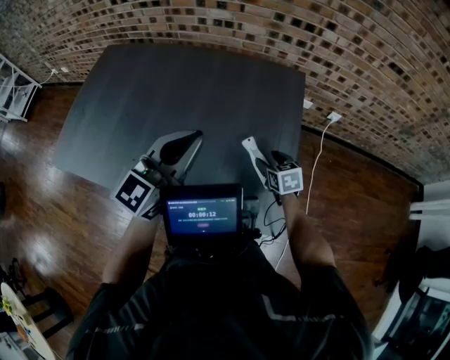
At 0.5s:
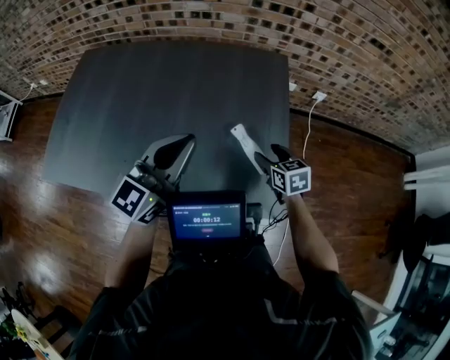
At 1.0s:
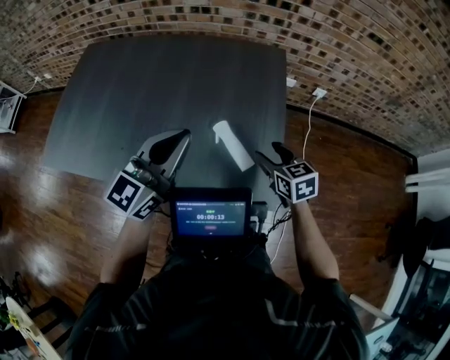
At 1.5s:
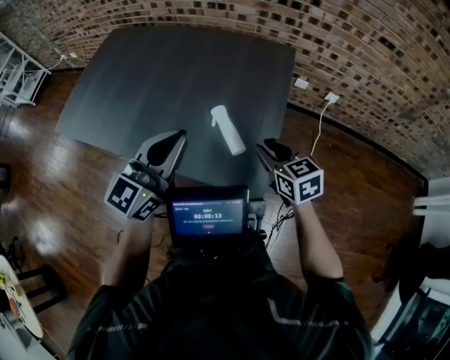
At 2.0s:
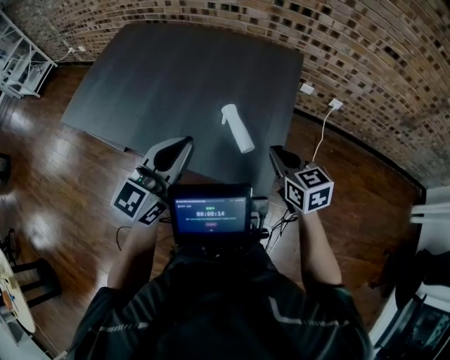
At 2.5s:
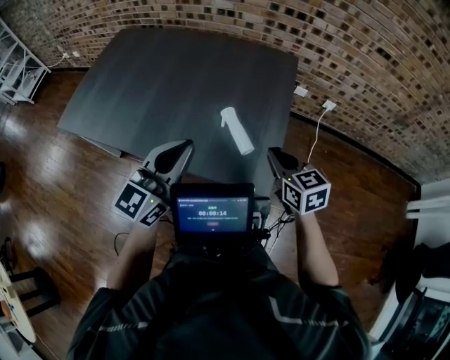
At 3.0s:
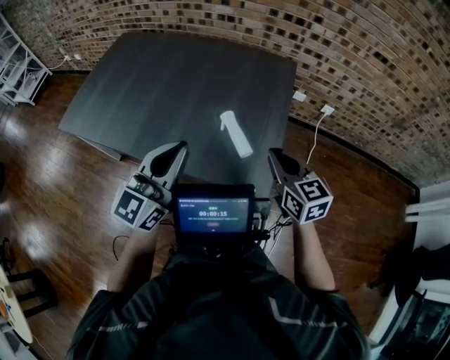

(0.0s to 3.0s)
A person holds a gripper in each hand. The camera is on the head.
0.0s - 1.5s: The right gripper heads upward and backward, covering about 20 cm, and closes its fingers; the left gripper is displaced backward and to the right by about 15 cm.
1.5s - 3.0s: The right gripper shifts some 10 cm upward and backward, and closes up; the left gripper heads to the left and backward, covering approximately 10 cm.

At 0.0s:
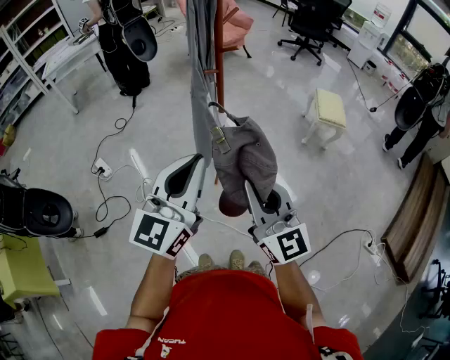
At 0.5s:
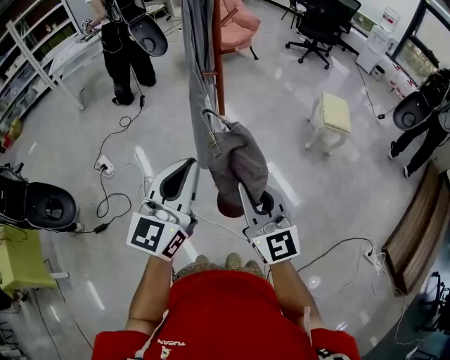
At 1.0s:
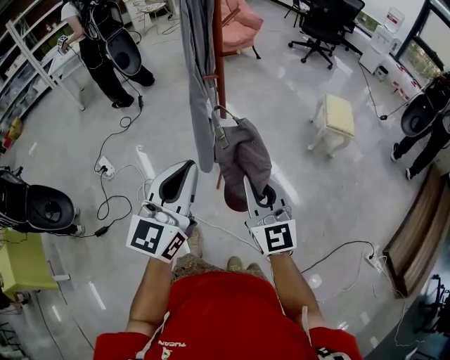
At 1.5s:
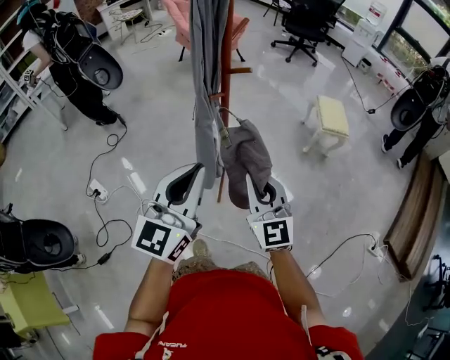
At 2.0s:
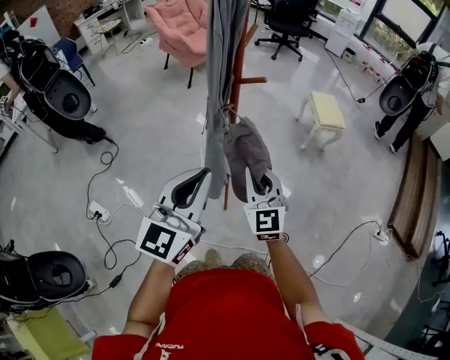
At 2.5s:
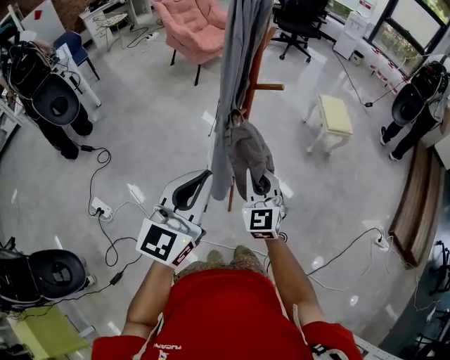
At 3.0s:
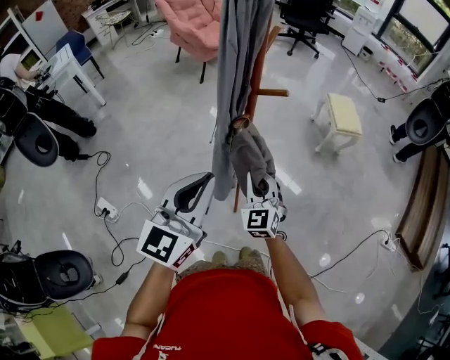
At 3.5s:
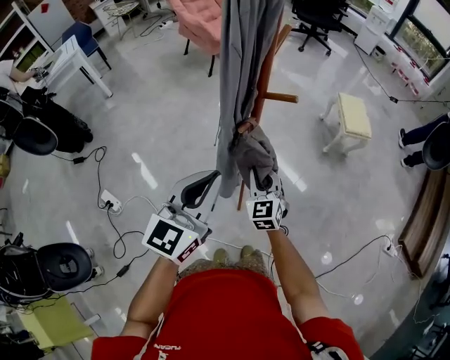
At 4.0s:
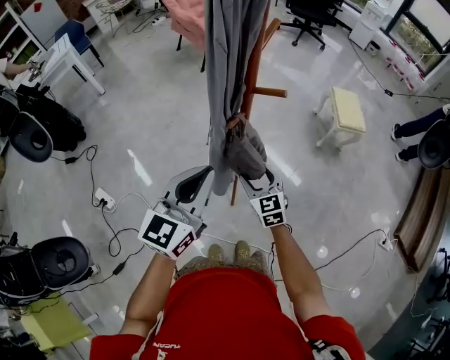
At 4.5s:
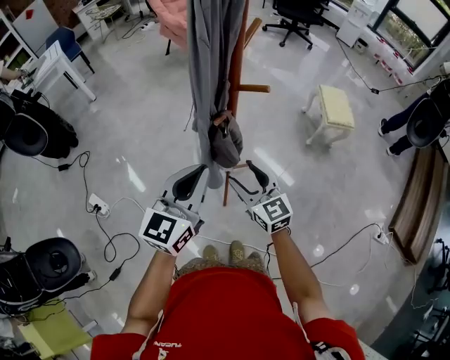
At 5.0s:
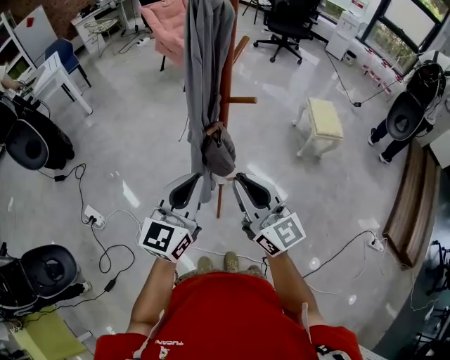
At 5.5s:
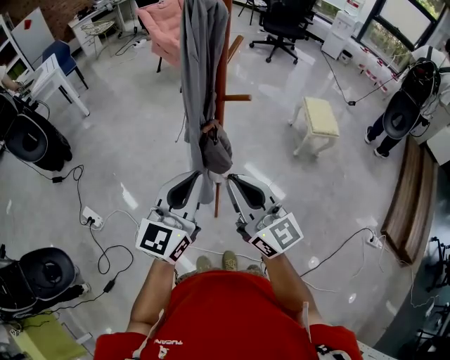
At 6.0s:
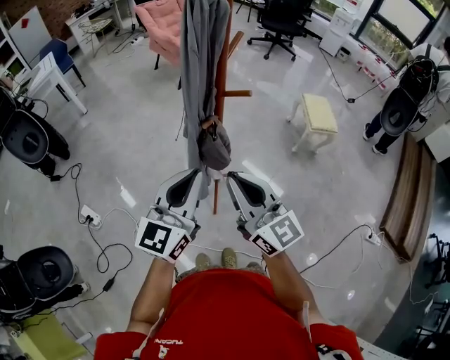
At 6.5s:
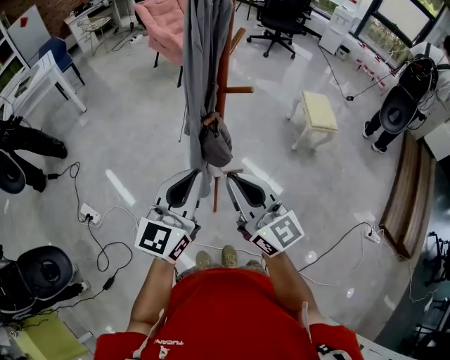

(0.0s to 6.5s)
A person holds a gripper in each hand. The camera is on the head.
0.0s - 2.0s: The left gripper travels forward and to the left by roughly 20 cm; the right gripper travels forward, to the left and downward by approximately 30 cm, and swivels about 30 degrees.
2.0s - 4.5s: Both grippers travel together forward and downward, some 10 cm. The right gripper swivels some 30 degrees, and opens.
4.5s - 6.5s: The left gripper changes place by roughly 5 cm; the right gripper is displaced upward and backward by some 20 cm, swivels roughly 20 degrees, and closes.

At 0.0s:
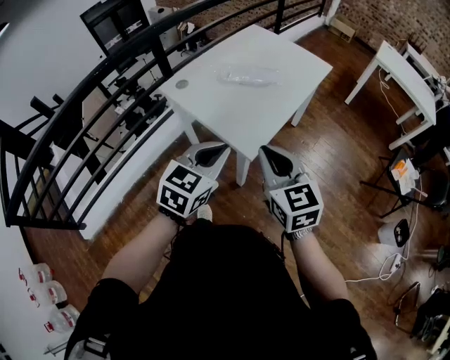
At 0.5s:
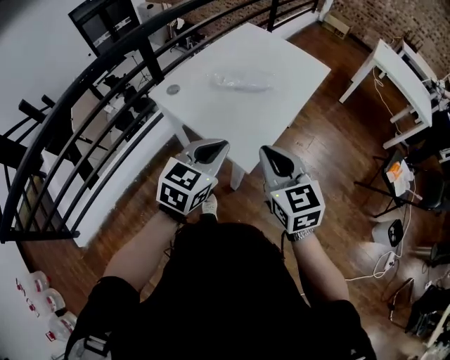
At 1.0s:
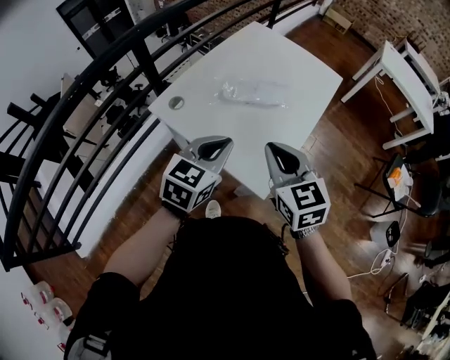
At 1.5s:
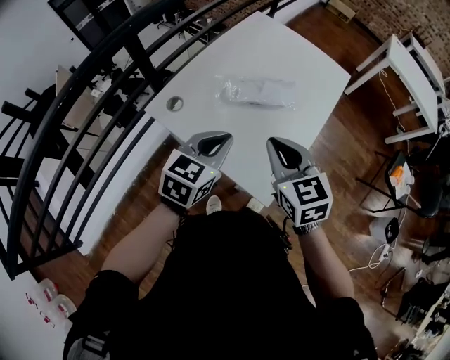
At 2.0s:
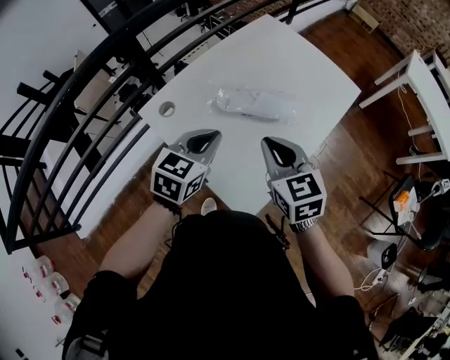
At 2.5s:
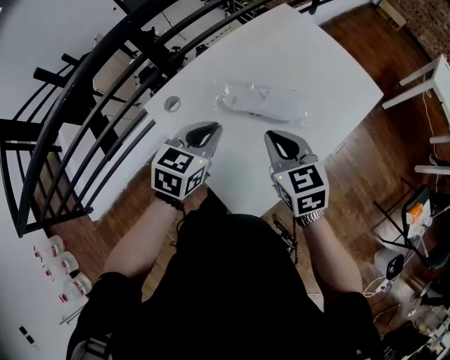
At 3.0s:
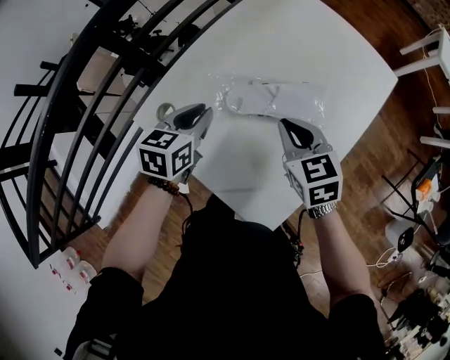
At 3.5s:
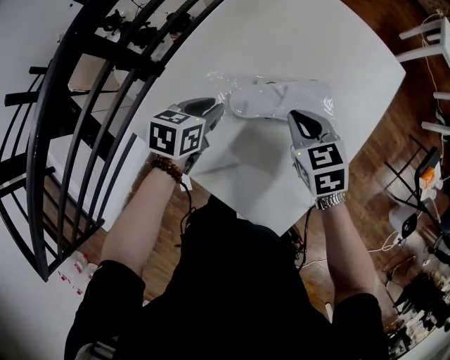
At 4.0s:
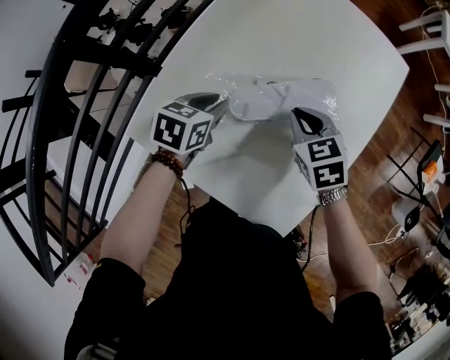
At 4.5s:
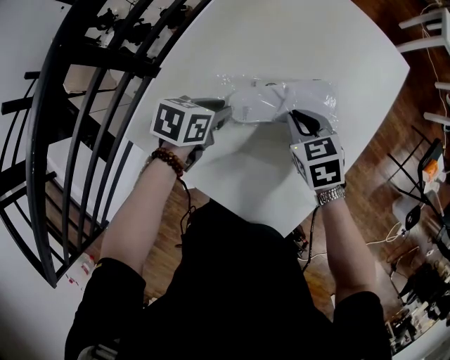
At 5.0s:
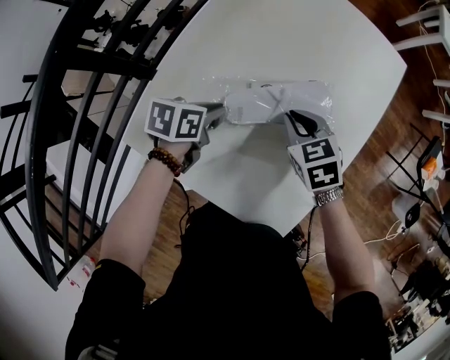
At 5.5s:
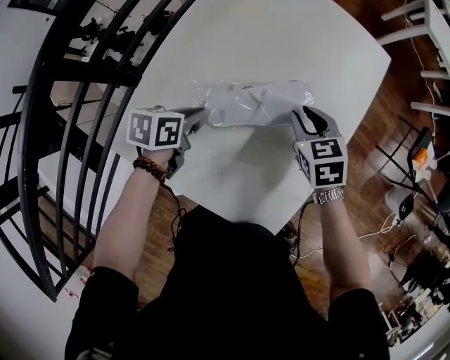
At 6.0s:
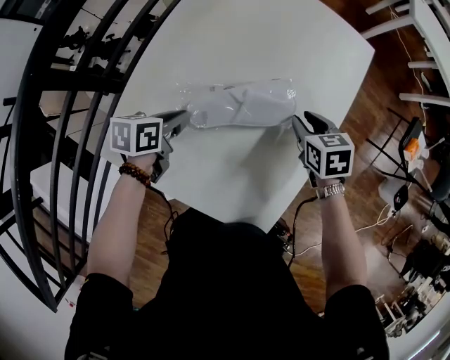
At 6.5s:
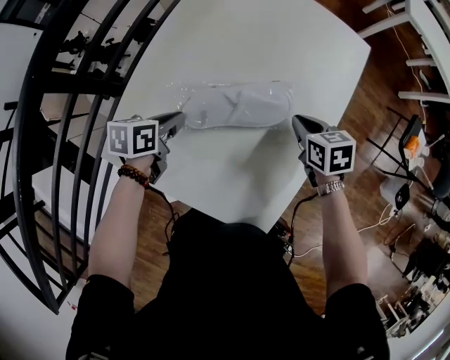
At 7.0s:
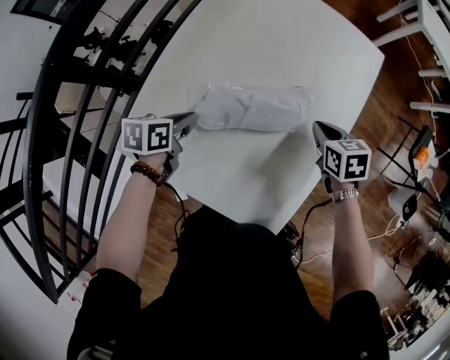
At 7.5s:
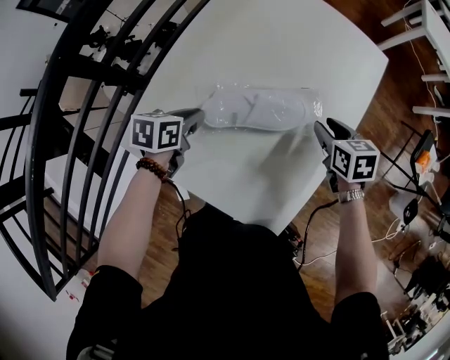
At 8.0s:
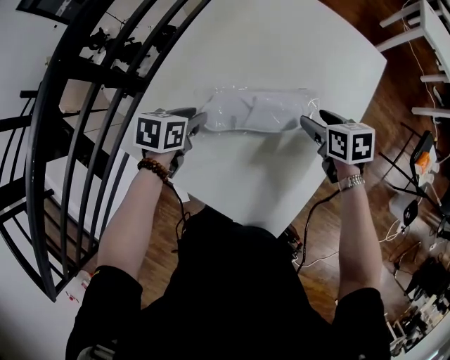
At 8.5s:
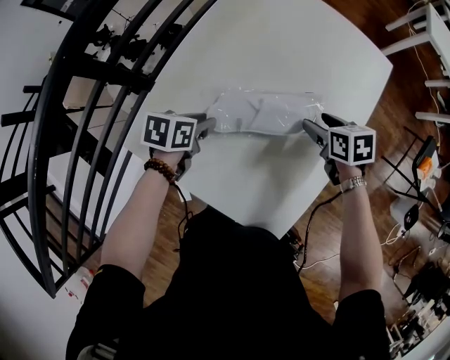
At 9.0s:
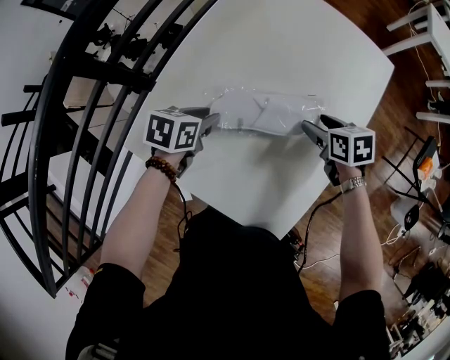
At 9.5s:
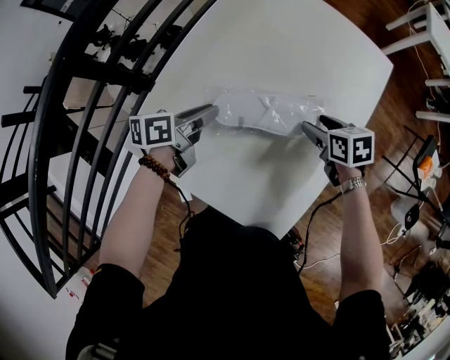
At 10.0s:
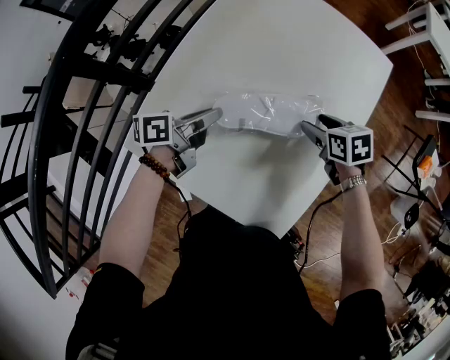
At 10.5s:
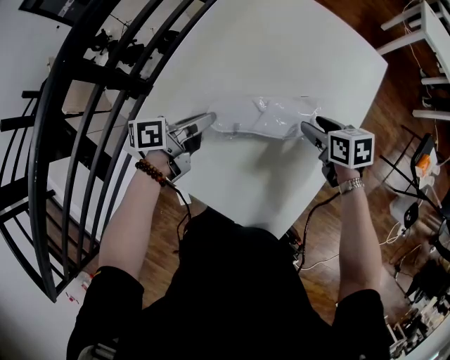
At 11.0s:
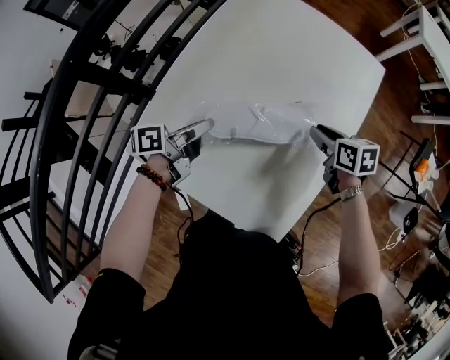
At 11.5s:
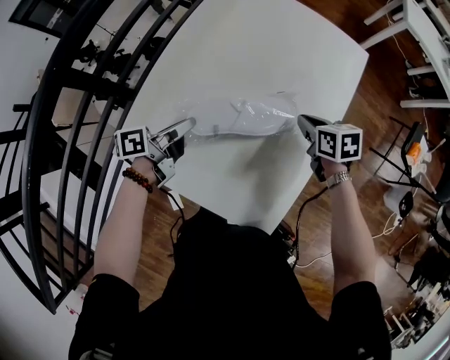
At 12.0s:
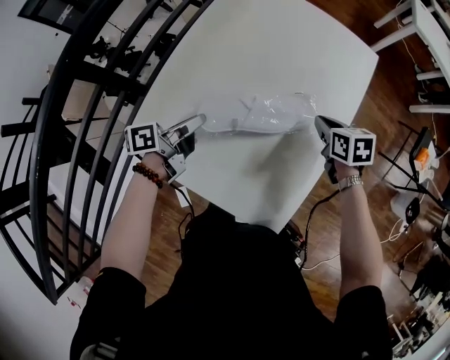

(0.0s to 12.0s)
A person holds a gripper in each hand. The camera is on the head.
0.0s - 2.0s: Both grippers move forward, about 25 cm.
2.0s - 4.0s: The left gripper goes approximately 20 cm downward, forward and to the left, and turns by about 30 degrees, while the right gripper moves downward and forward, approximately 20 cm, and turns by roughly 20 degrees.
4.0s - 6.0s: The right gripper shifts about 15 cm to the right, and opens.
6.0s - 8.0s: The right gripper opens, while the left gripper opens up.
8.0s - 10.0s: The left gripper ends up about 5 cm from where it was, and tips its fingers upward by some 30 degrees.
10.0s - 12.0s: The right gripper shifts roughly 5 cm to the right, and closes.

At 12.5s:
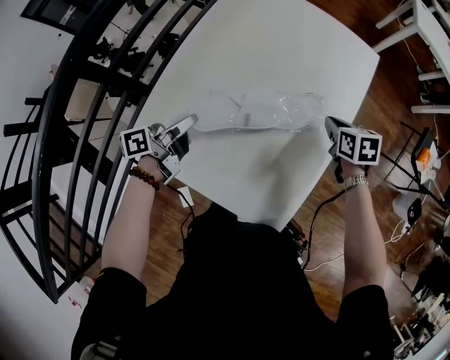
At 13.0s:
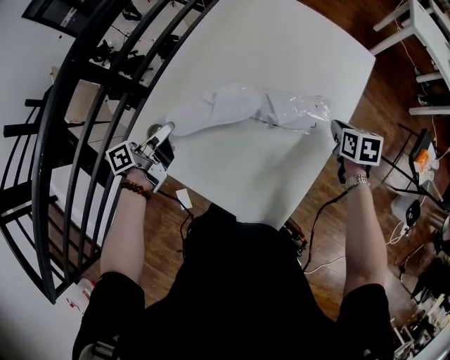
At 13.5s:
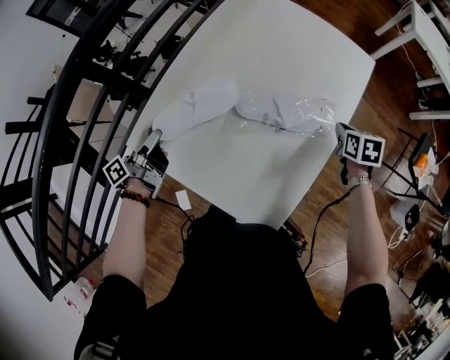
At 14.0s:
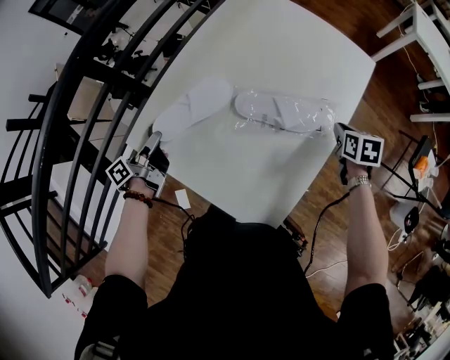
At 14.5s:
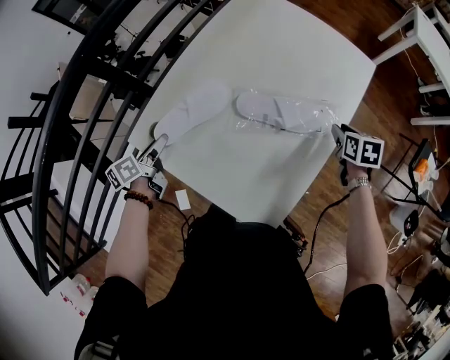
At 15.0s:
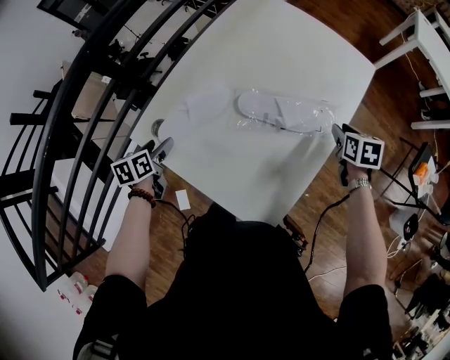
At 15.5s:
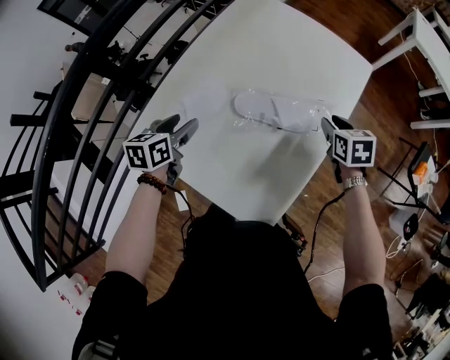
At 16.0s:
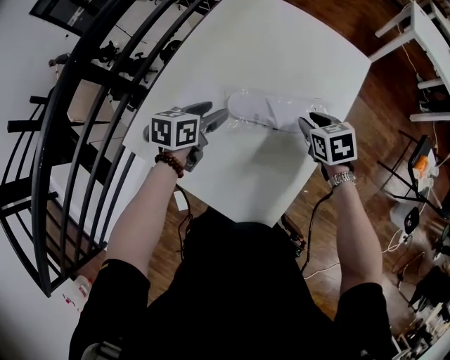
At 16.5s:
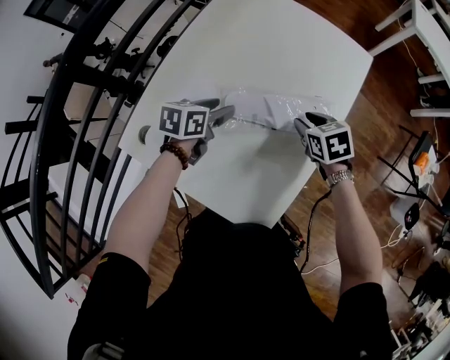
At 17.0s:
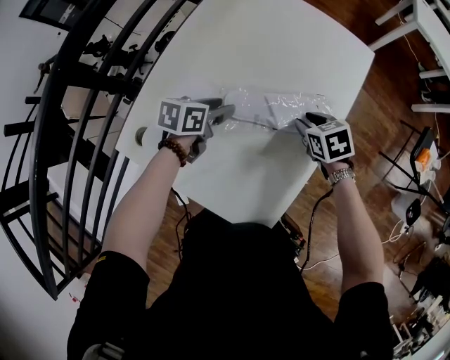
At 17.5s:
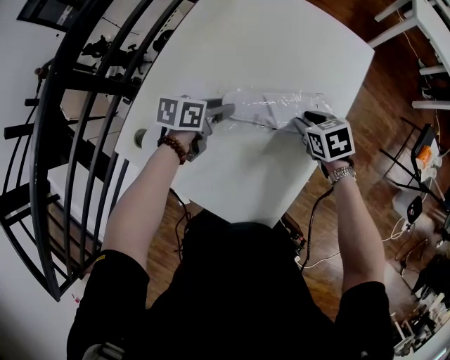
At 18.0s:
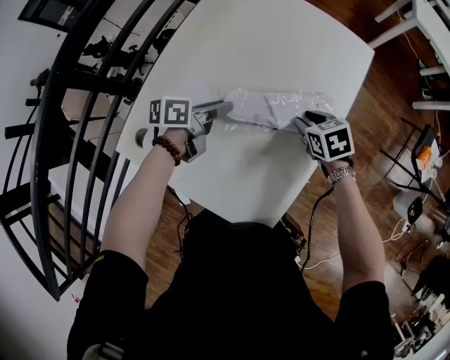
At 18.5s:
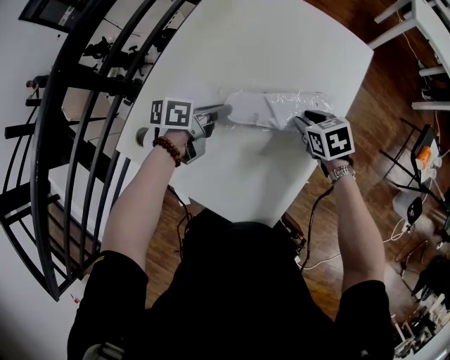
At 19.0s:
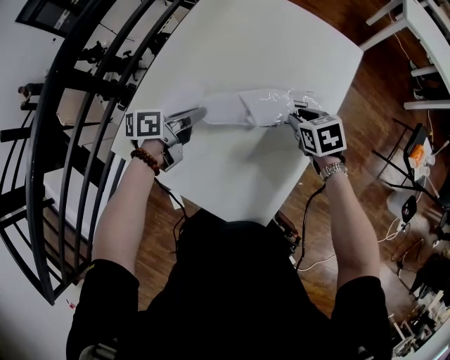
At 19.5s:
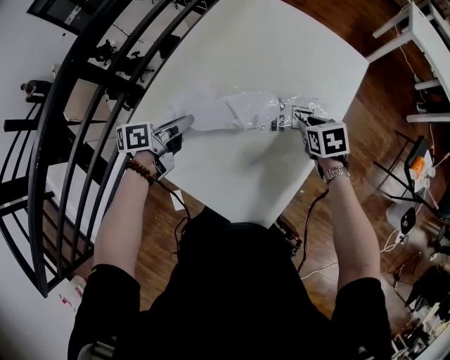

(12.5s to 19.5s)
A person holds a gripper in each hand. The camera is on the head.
12.5s - 14.5s: The left gripper is displaced to the left, backward and downward by roughly 15 cm, turns by approximately 30 degrees, and opens up, while the right gripper shifts about 5 cm to the right, and opens up.
14.5s - 16.0s: The right gripper moves to the left, about 10 cm. The left gripper goes some 20 cm to the right and forward, and swivels roughly 40 degrees.
16.0s - 17.5s: The left gripper moves downward, about 5 cm.
17.5s - 19.5s: The left gripper is displaced to the left and backward by some 10 cm, swivels roughly 30 degrees, and closes.
